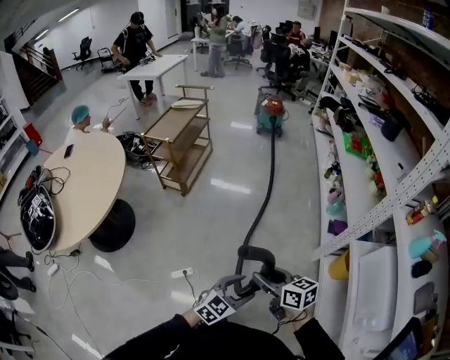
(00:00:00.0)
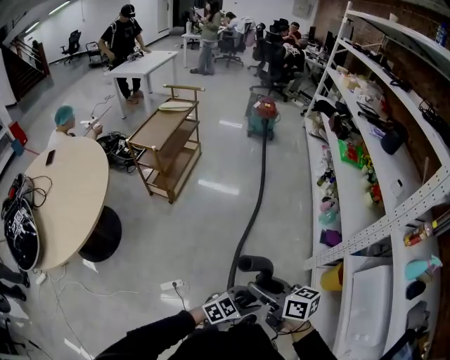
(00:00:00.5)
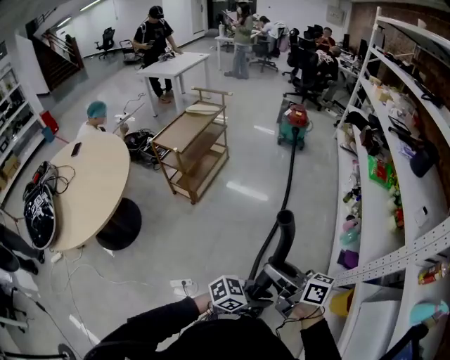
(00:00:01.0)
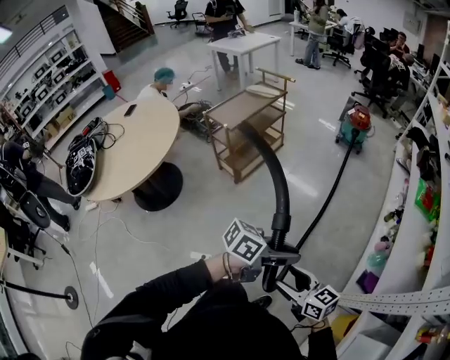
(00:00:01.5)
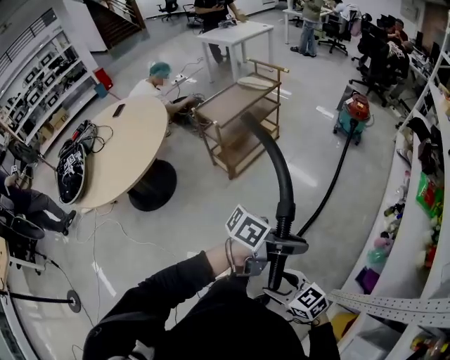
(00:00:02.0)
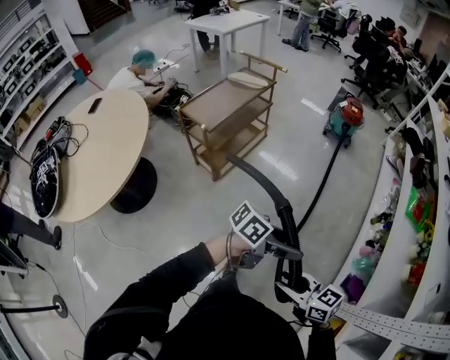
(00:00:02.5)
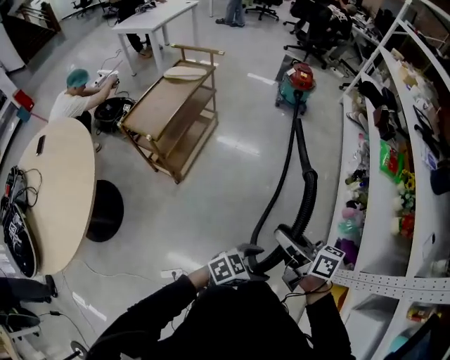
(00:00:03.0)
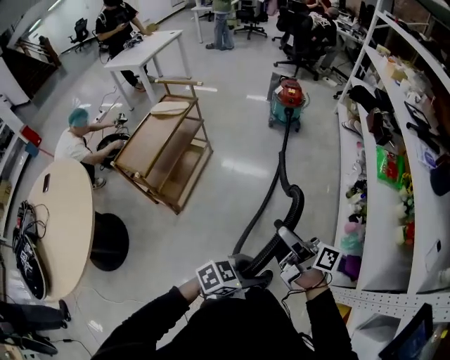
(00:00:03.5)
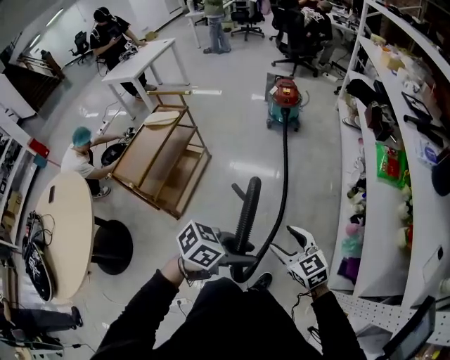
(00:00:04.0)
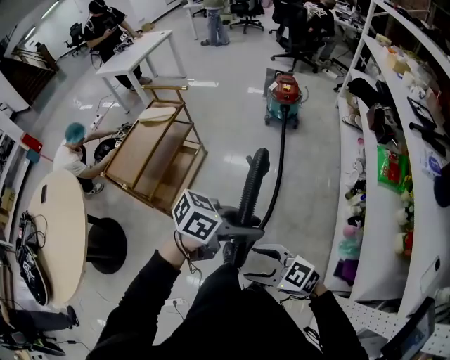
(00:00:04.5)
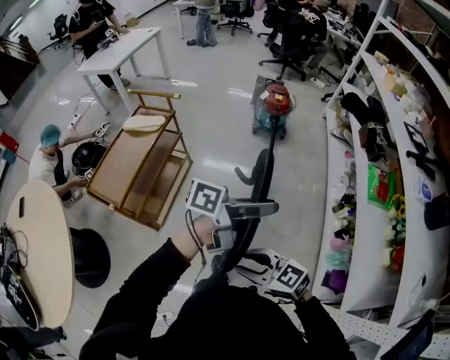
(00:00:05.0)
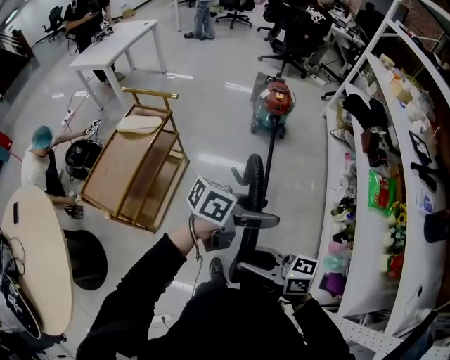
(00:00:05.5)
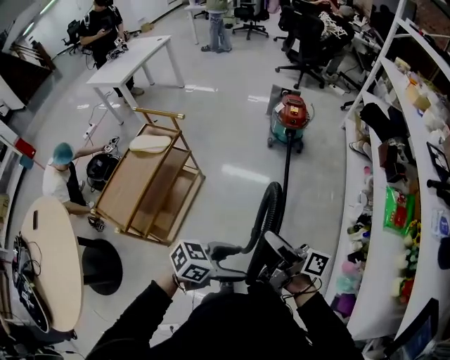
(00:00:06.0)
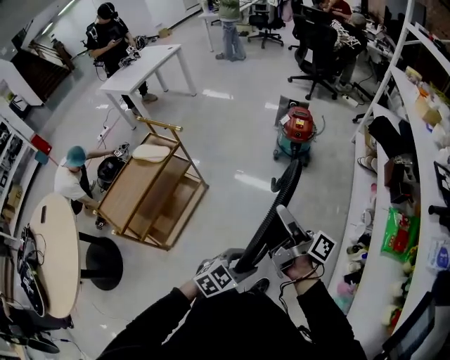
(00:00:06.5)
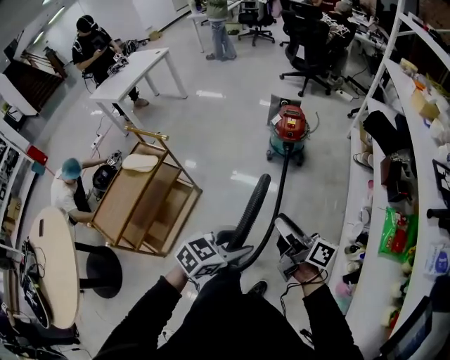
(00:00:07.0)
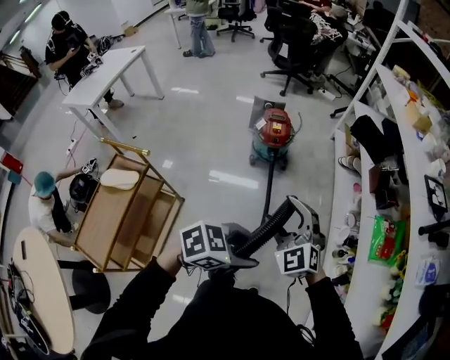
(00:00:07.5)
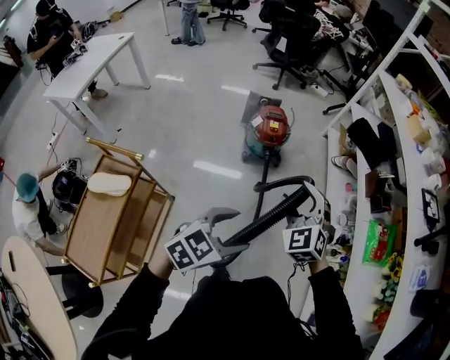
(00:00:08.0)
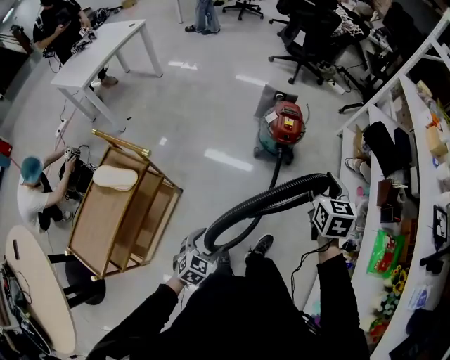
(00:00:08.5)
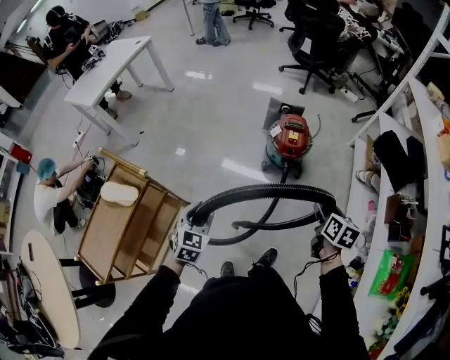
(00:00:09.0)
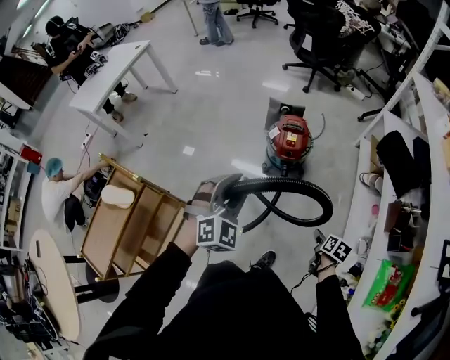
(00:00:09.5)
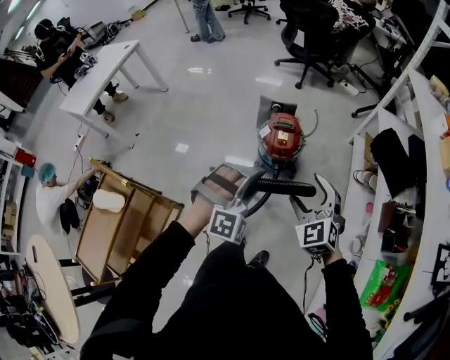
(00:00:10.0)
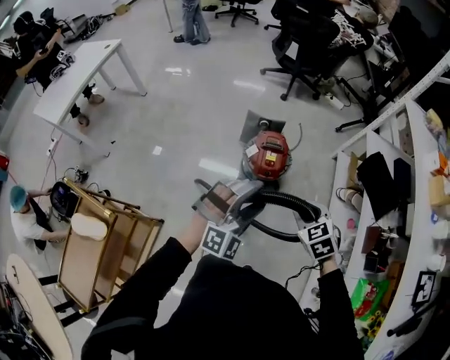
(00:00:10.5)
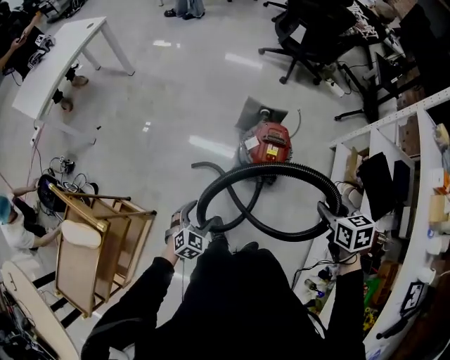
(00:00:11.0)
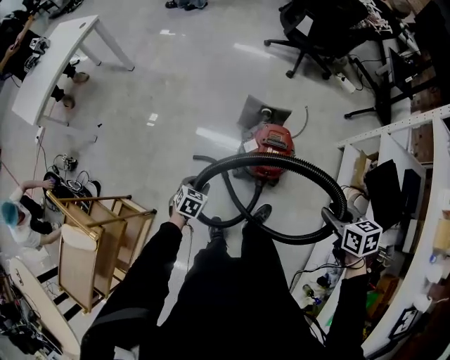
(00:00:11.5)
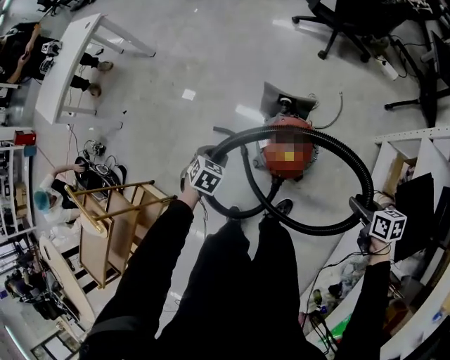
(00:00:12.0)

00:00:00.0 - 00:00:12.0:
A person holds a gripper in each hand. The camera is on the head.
00:00:00.0 - 00:00:02.0: The right gripper changes place by roughly 25 cm, and turns by about 50 degrees; the left gripper moves approximately 50 cm, rolls counterclockwise, seen from behind, by approximately 50 degrees, and closes up.
00:00:02.0 - 00:00:04.0: The right gripper reaches approximately 15 cm upward, then returns, and changes its angle by some 40 degrees; the left gripper goes downward and returns, about 15 cm each way, turns by some 40 degrees, and opens and closes again.
00:00:04.0 - 00:00:06.0: The left gripper reaches about 10 cm upward, then returns, and opens up. Meanwhile the right gripper shifts by roughly 35 cm, and twists approximately 70 degrees clockwise, seen from behind.
00:00:06.0 - 00:00:08.0: The right gripper ends up approximately 40 cm from where it was, and twists some 100 degrees counterclockwise, seen from behind, while the left gripper changes place by roughly 40 cm, changes its angle by about 30 degrees, and closes, then reopens.
00:00:08.0 - 00:00:10.0: The right gripper reaches about 30 cm downward, then returns. The left gripper travels downward and back again, about 25 cm each way, twists about 60 degrees clockwise, seen from behind, and closes its fingers.
00:00:10.0 - 00:00:12.0: The left gripper moves roughly 50 cm, rolls counterclockwise, seen from behind, by approximately 70 degrees, and opens, then closes again; the right gripper moves about 50 cm, twists approximately 60 degrees clockwise, seen from behind, and closes.

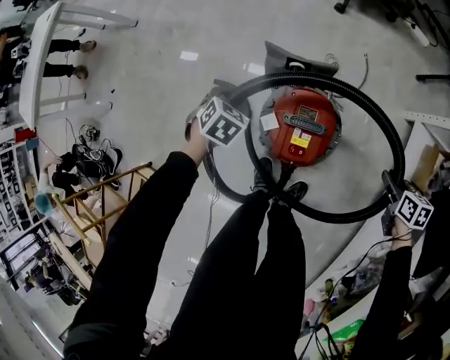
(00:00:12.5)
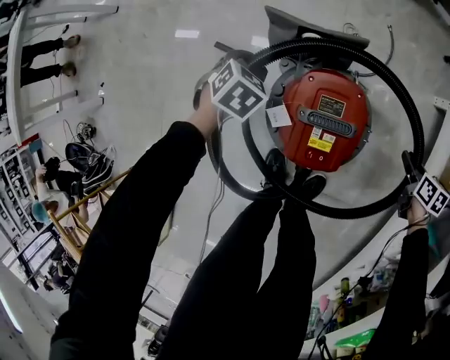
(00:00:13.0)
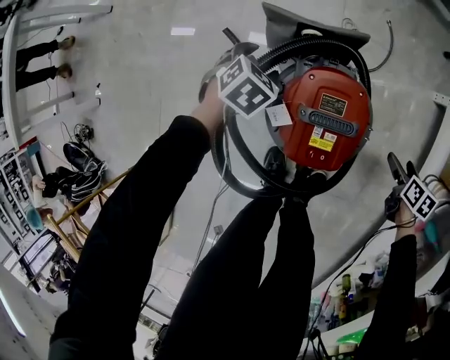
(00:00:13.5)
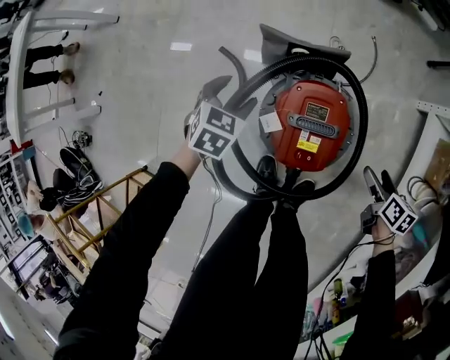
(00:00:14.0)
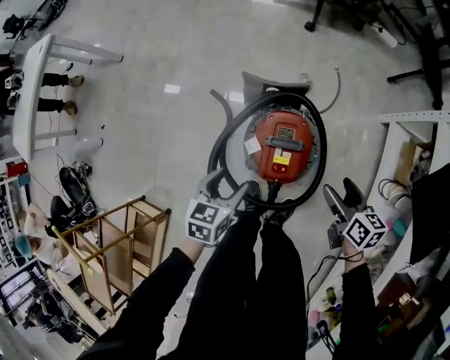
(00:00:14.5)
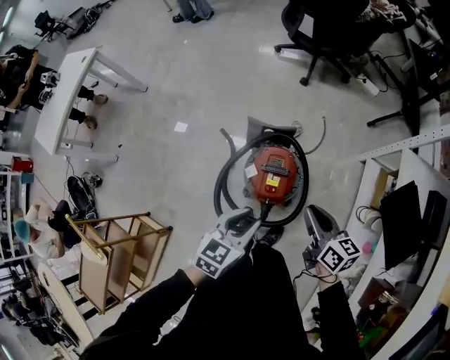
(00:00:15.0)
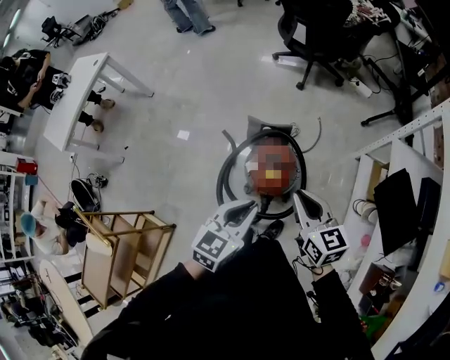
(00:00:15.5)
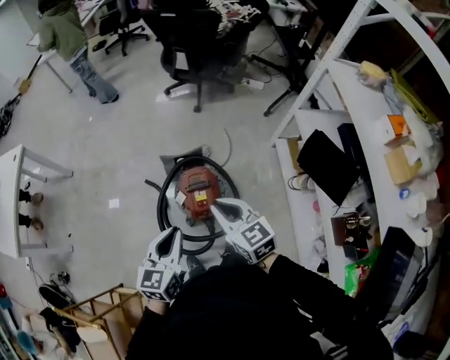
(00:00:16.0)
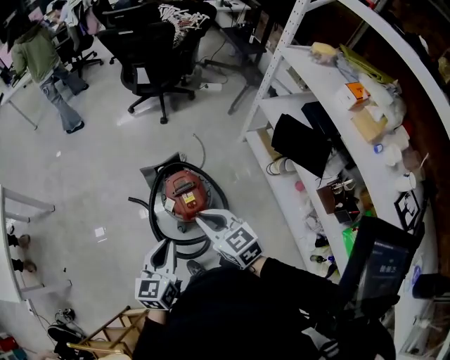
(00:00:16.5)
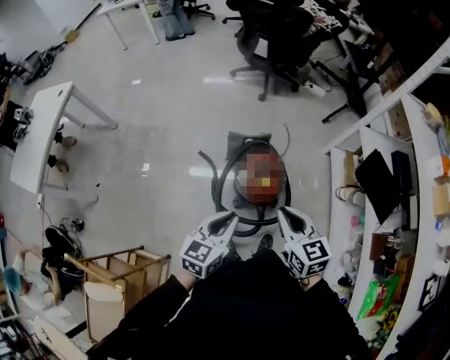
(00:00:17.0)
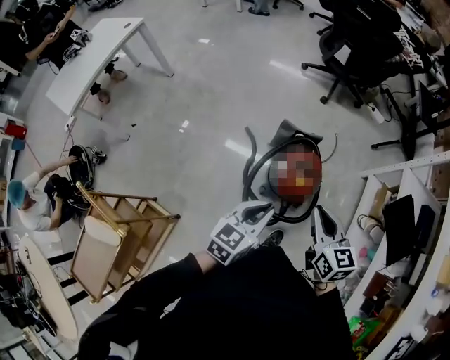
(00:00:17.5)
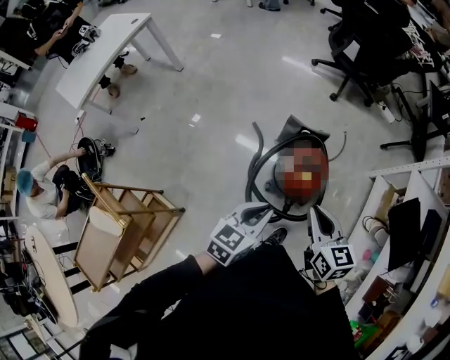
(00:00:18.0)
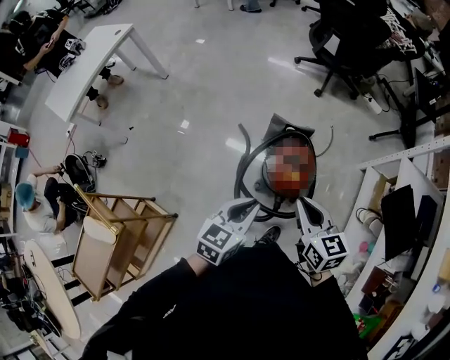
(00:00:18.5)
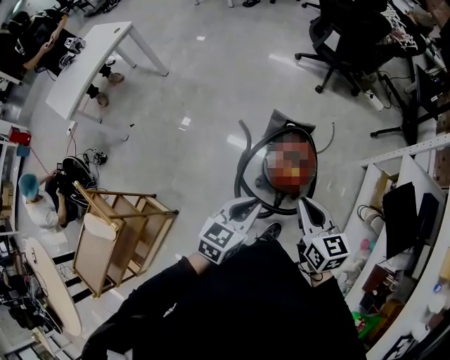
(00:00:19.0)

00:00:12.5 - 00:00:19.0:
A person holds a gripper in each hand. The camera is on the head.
00:00:12.5 - 00:00:14.5: The left gripper heads backward and upward, covering roughly 15 cm, turns by some 40 degrees, and opens its fingers. The right gripper heads to the left, covering roughly 15 cm, reaches approximately 20 cm downward, then returns, changes its angle by approximately 20 degrees, and opens up.
00:00:14.5 - 00:00:17.0: The right gripper moves upward, to the left and backward, about 40 cm, rotates roughly 30 degrees, and closes its fingers. The left gripper heads upward and backward, covering about 35 cm, rotates approximately 30 degrees, and closes up.
00:00:17.0 - 00:00:19.0: The grippers stay close to where they were, moving slightly.

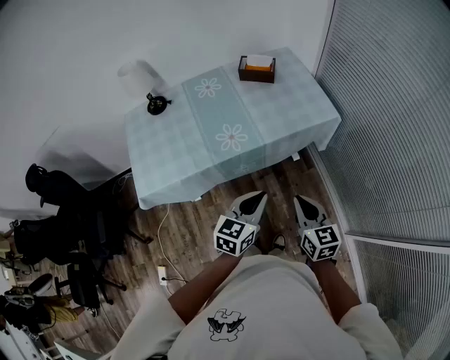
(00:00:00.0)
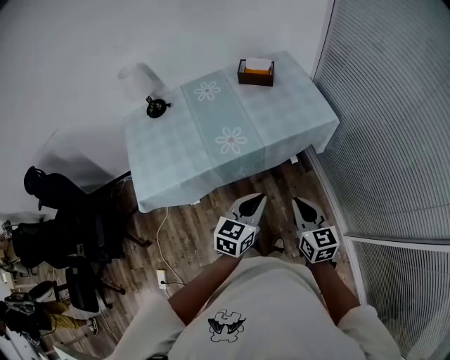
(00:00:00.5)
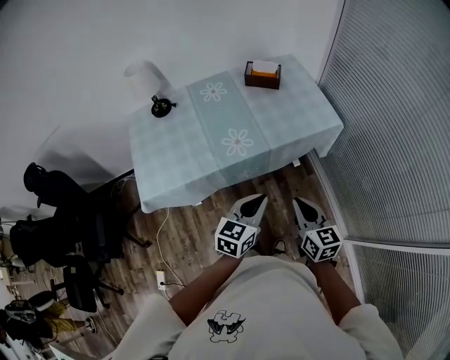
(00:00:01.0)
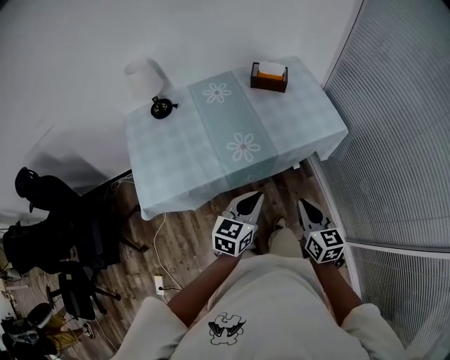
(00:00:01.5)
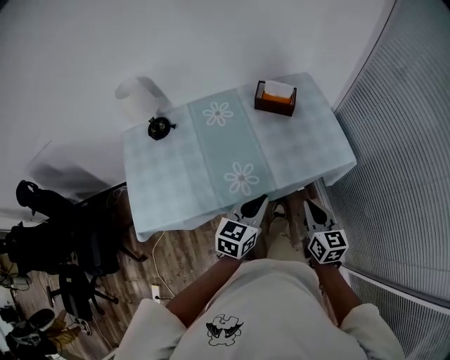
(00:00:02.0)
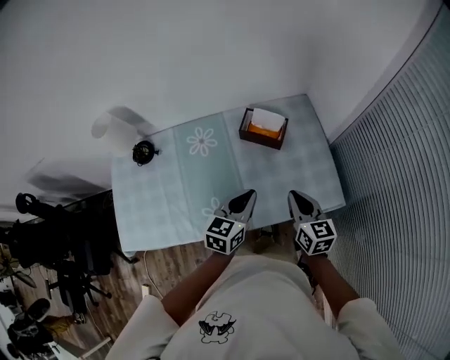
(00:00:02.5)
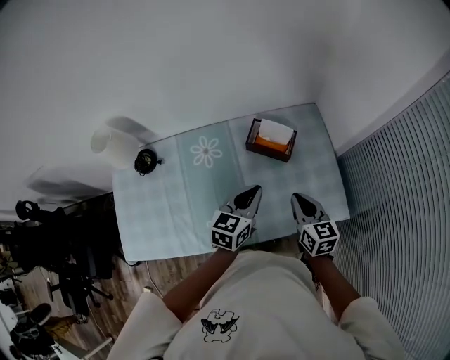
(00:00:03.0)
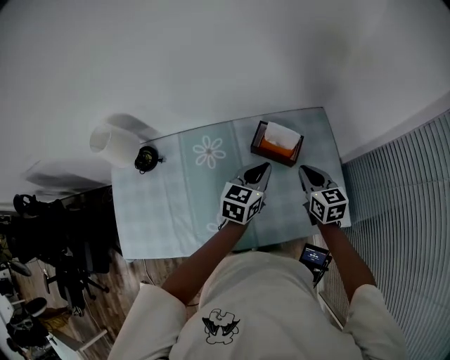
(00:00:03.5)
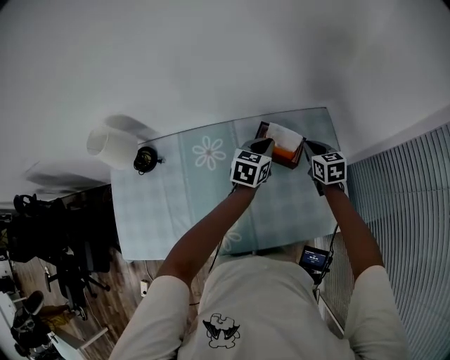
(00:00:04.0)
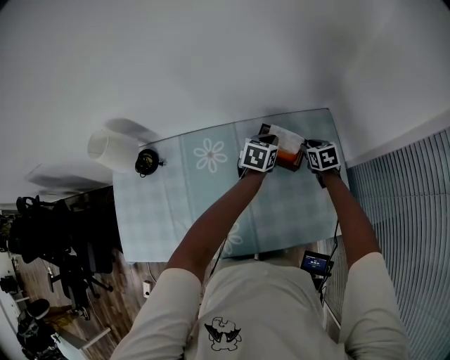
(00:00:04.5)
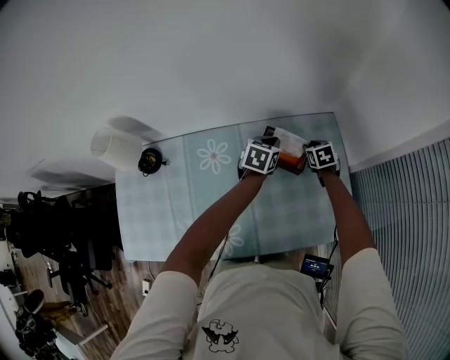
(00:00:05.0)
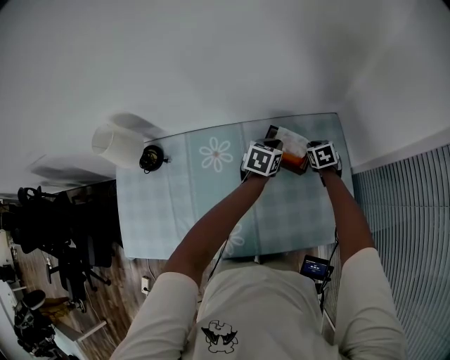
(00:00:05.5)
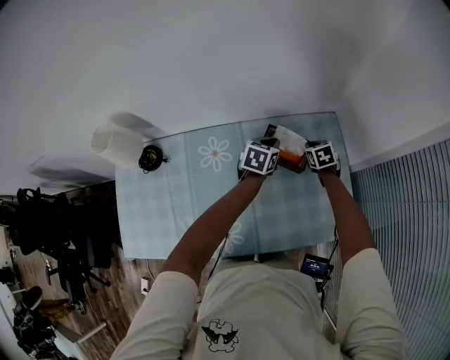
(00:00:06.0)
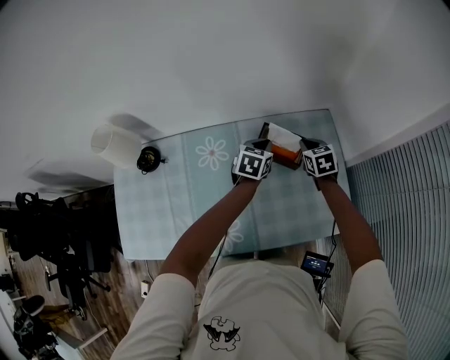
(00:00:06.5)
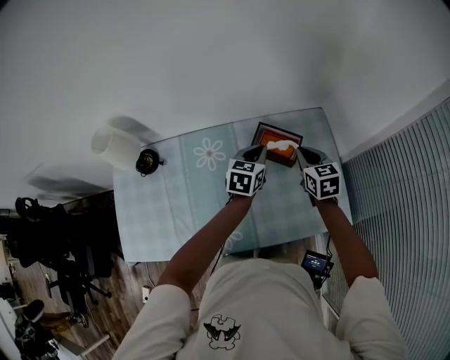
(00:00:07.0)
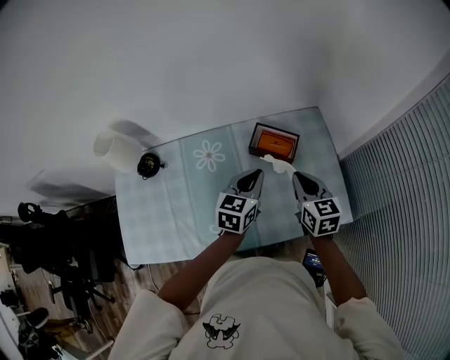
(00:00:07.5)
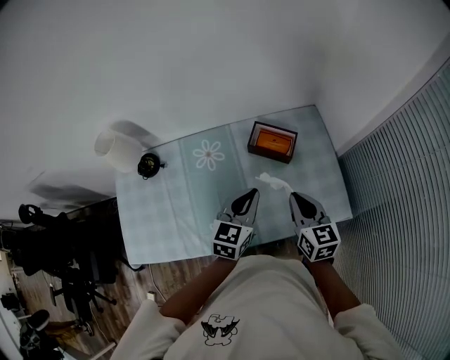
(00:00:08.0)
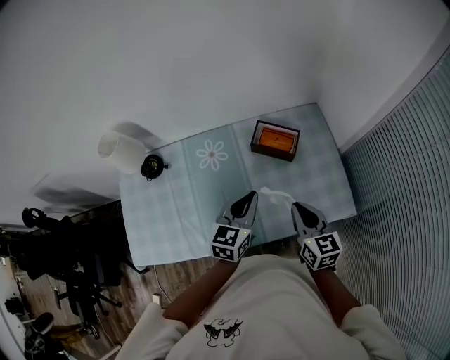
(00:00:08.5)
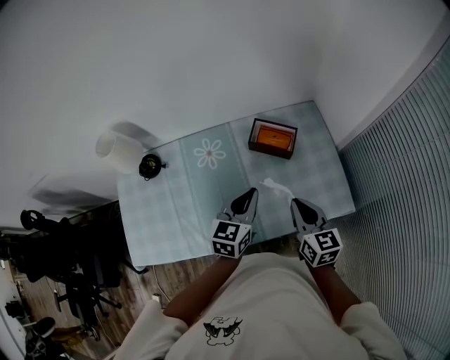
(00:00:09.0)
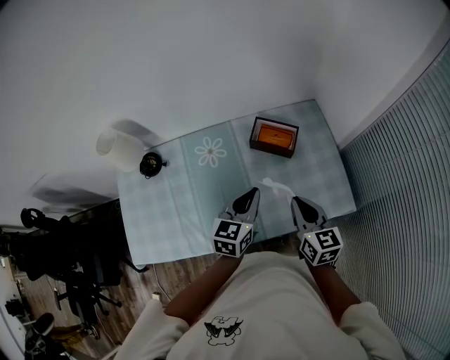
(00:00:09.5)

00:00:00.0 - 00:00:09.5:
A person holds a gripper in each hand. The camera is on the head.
00:00:00.0 - 00:00:02.0: The grippers both shift forward by about 20 cm.
00:00:02.0 - 00:00:04.0: Both grippers are carried forward, approximately 50 cm. The right gripper swivels roughly 30 degrees.
00:00:04.0 - 00:00:05.5: The left gripper moves downward, some 5 cm; the right gripper moves downward and forward, roughly 10 cm, and swivels some 20 degrees.
00:00:05.5 - 00:00:07.5: The two grippers go some 25 cm backward and upward. The right gripper angles its fingers upward, by some 30 degrees.
00:00:07.5 - 00:00:09.5: Both grippers travel together backward, some 10 cm.
